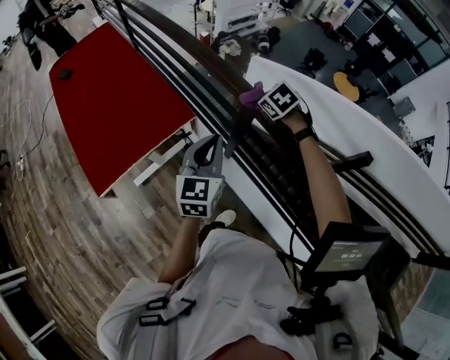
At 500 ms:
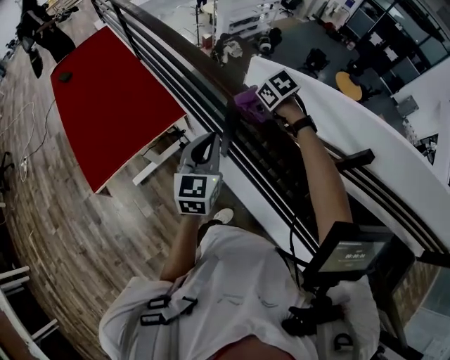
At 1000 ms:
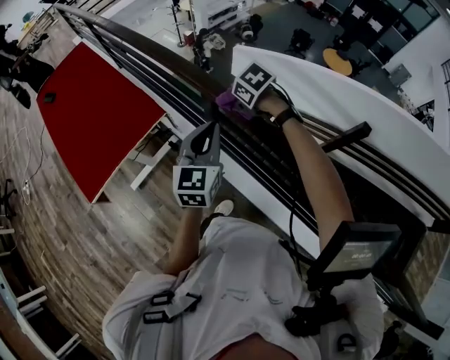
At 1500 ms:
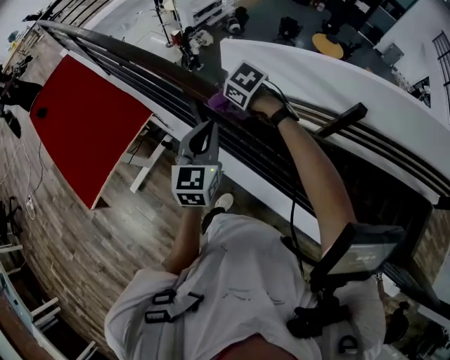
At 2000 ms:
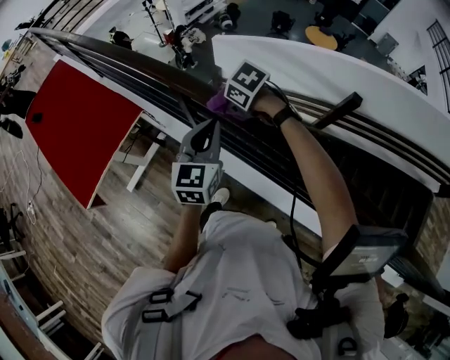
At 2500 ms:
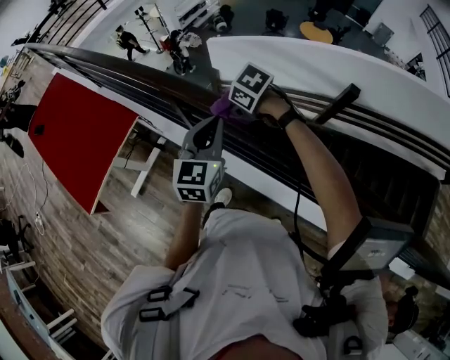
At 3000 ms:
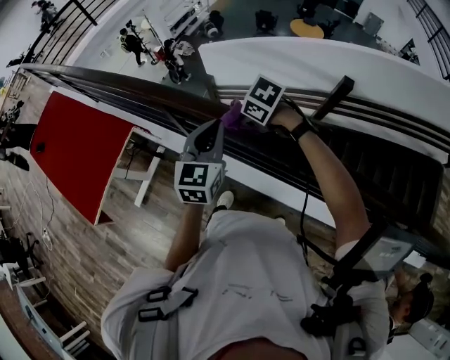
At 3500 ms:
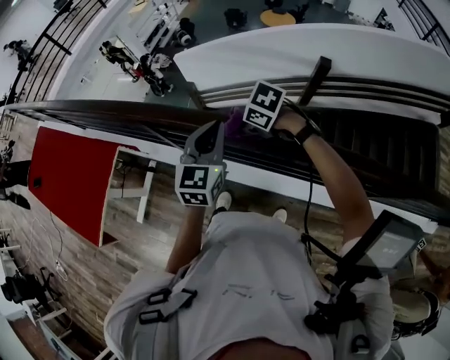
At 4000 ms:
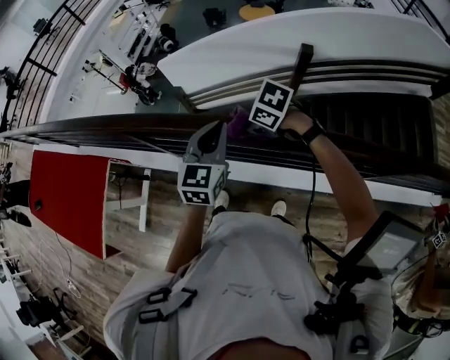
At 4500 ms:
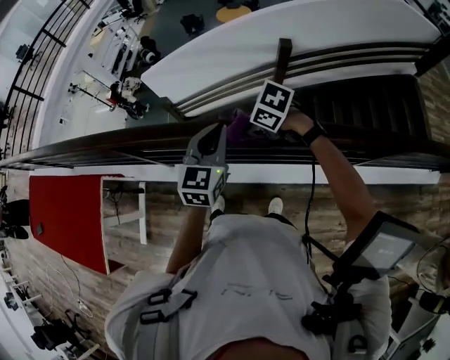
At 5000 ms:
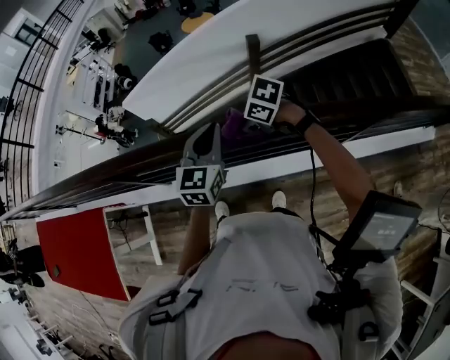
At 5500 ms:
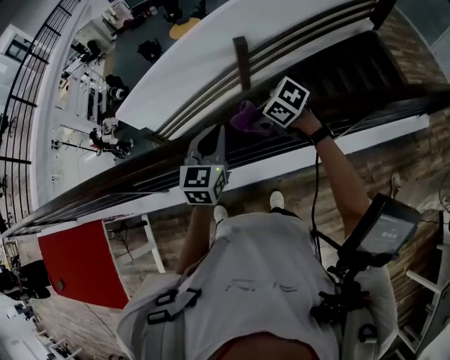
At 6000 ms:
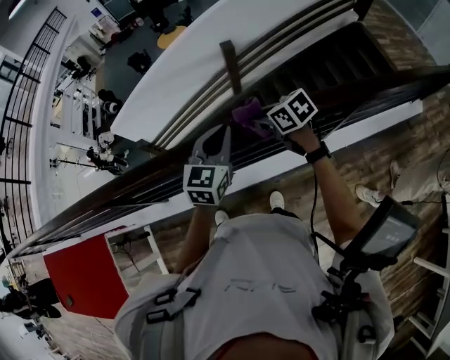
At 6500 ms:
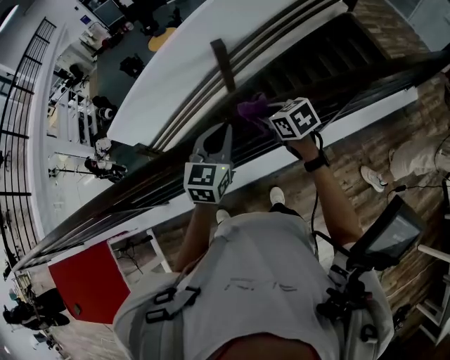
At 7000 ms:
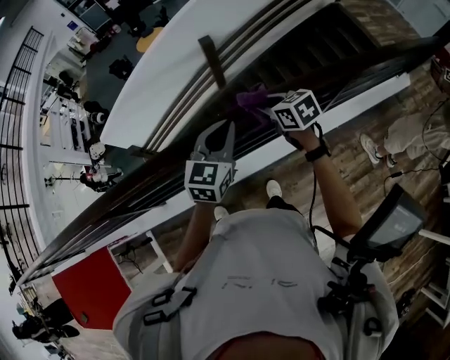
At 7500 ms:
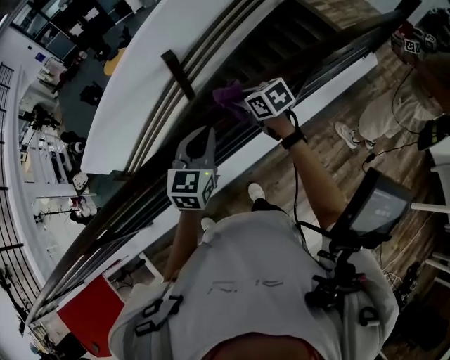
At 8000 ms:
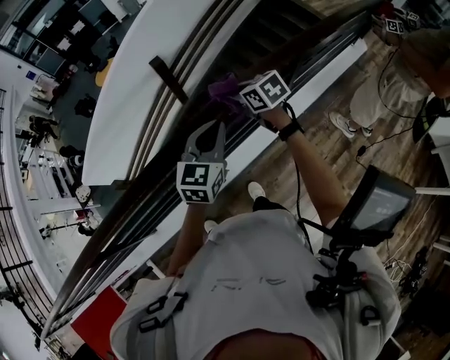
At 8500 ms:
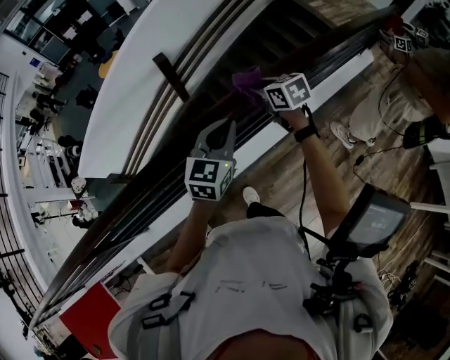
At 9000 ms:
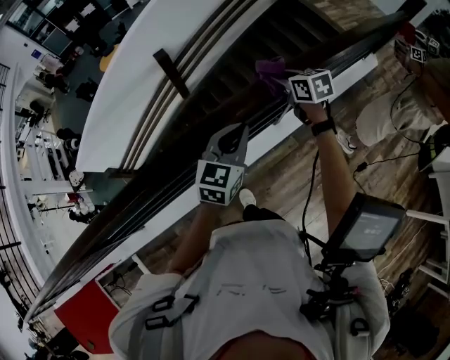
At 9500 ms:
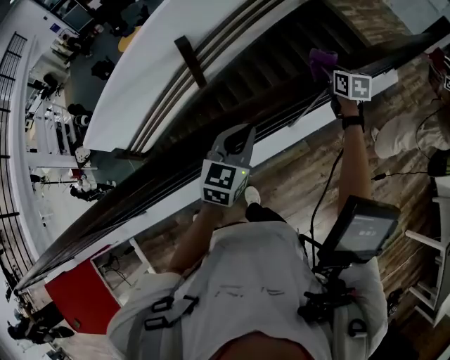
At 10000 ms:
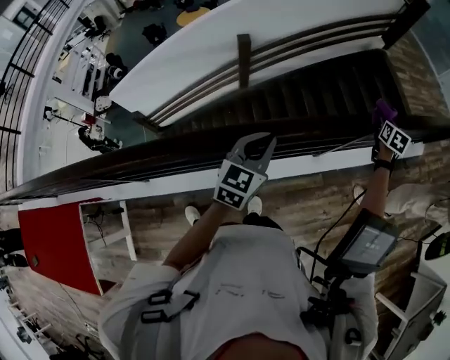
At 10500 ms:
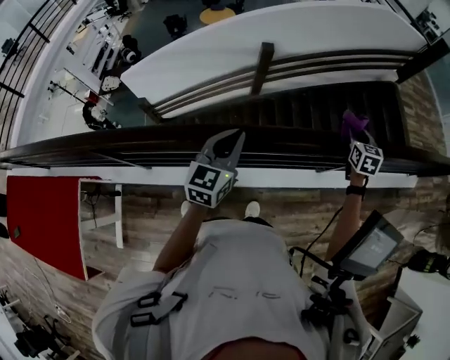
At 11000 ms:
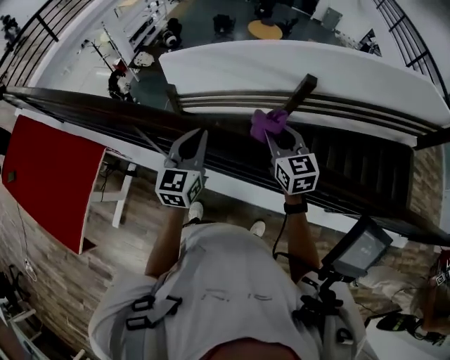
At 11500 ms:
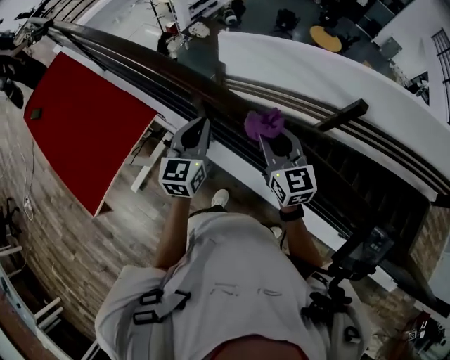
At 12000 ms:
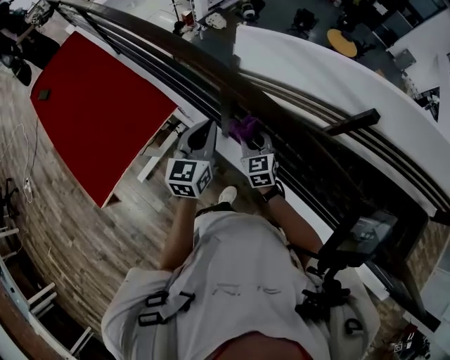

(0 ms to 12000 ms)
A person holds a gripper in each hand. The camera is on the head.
0 ms - 2000 ms: The right gripper moves backward, roughly 20 cm, and turns by about 20 degrees; the left gripper goes about 20 cm to the right and backward.
2000 ms - 4000 ms: The right gripper heads backward and to the right, covering roughly 30 cm, while the left gripper shifts approximately 25 cm to the right and backward, and changes its angle by roughly 30 degrees.
4000 ms - 6000 ms: The left gripper changes place by about 20 cm, and swivels approximately 30 degrees. Meanwhile the right gripper changes place by roughly 25 cm, and swivels approximately 60 degrees.
6000 ms - 8000 ms: The left gripper shifts by roughly 20 cm, and changes its angle by approximately 20 degrees, while the right gripper changes place by some 20 cm, and changes its angle by approximately 30 degrees.
8000 ms - 10000 ms: The left gripper goes to the right and returns, approximately 10 cm each way. Meanwhile the right gripper heads to the right and forward, covering approximately 35 cm, and rotates some 40 degrees.
10000 ms - 12000 ms: The pair of grippers is taken about 1 m. The left gripper swivels some 70 degrees; the right gripper rotates about 90 degrees.

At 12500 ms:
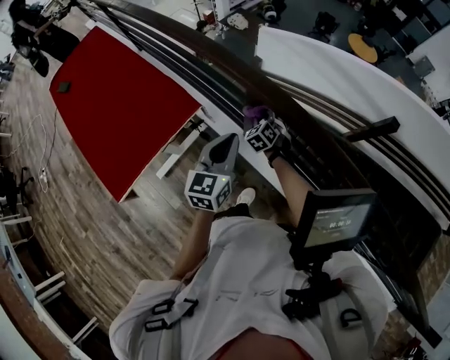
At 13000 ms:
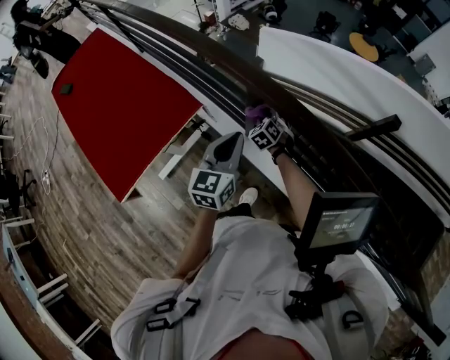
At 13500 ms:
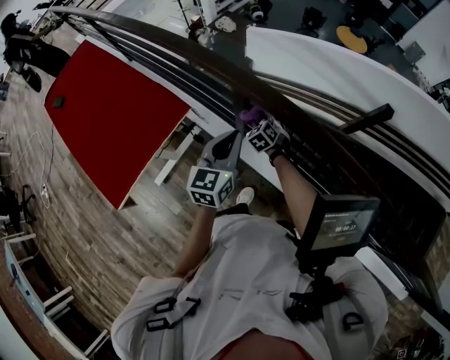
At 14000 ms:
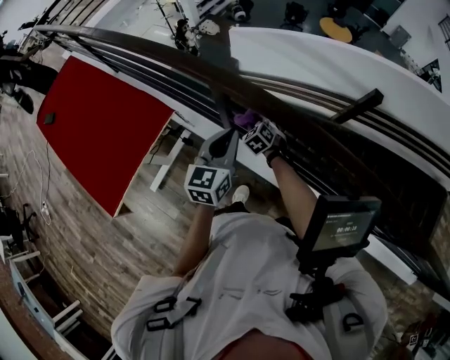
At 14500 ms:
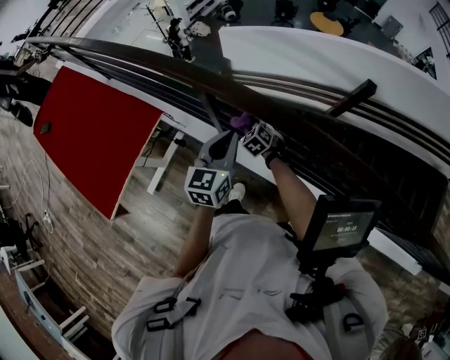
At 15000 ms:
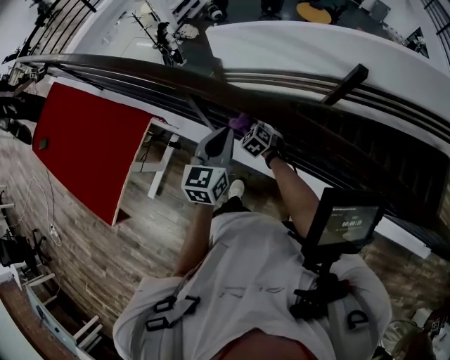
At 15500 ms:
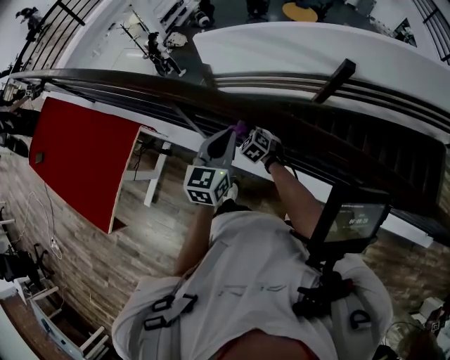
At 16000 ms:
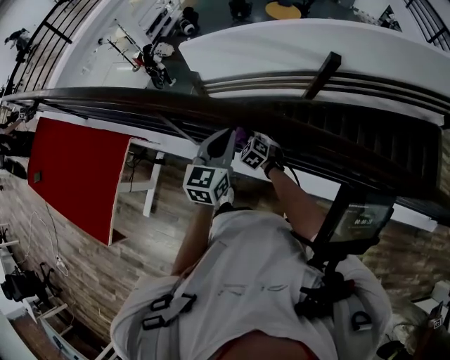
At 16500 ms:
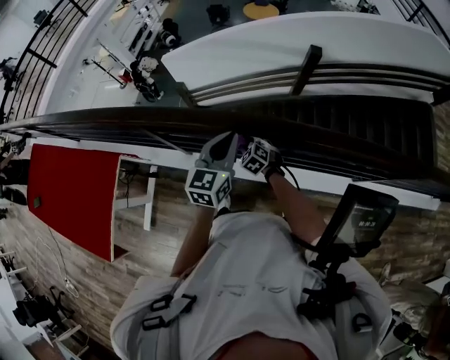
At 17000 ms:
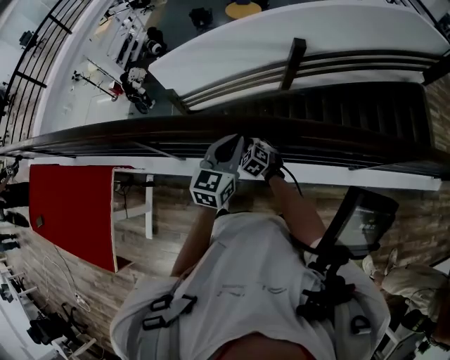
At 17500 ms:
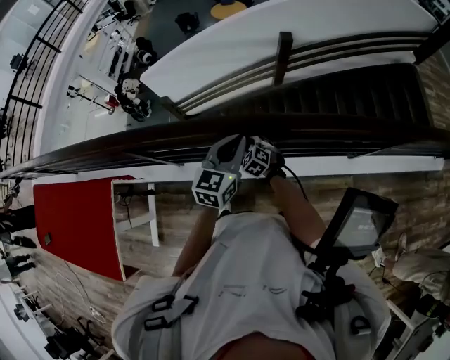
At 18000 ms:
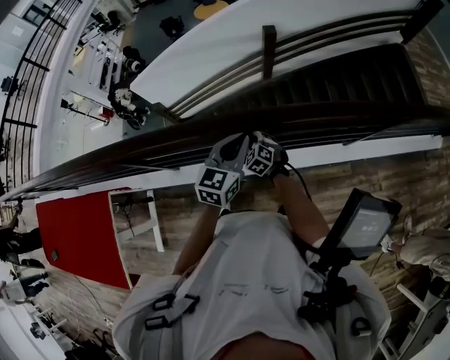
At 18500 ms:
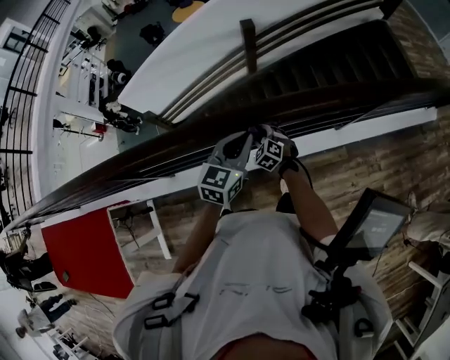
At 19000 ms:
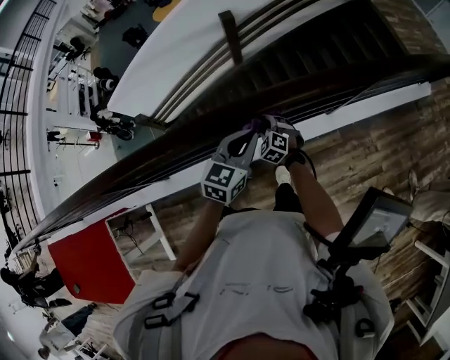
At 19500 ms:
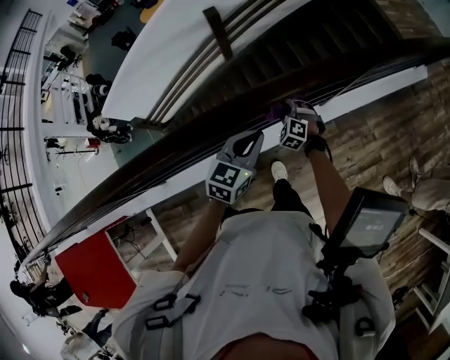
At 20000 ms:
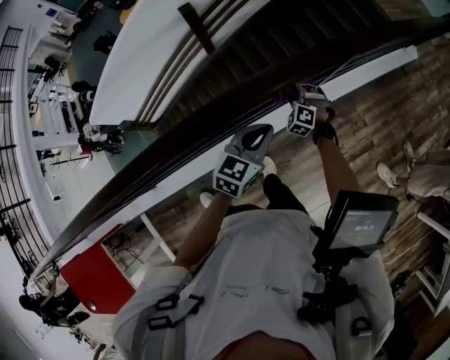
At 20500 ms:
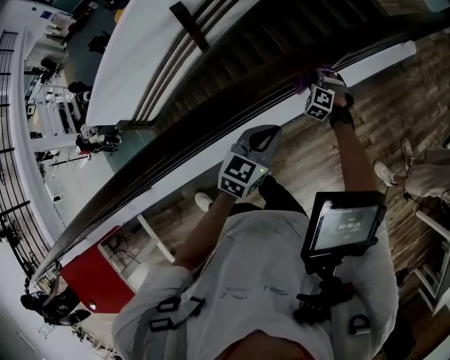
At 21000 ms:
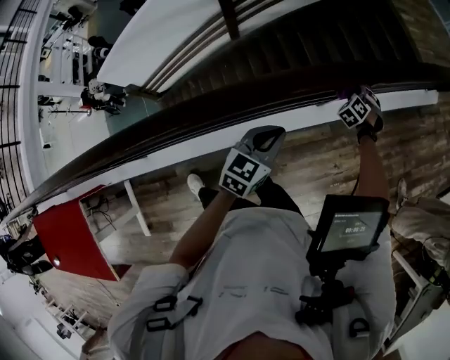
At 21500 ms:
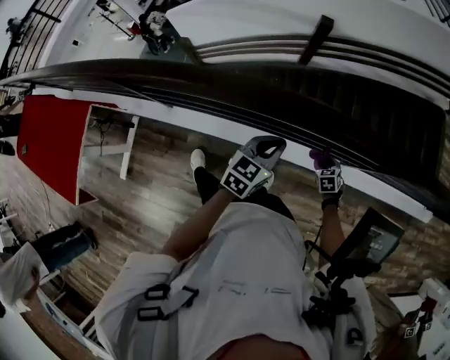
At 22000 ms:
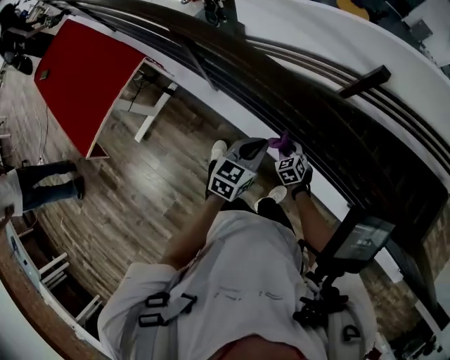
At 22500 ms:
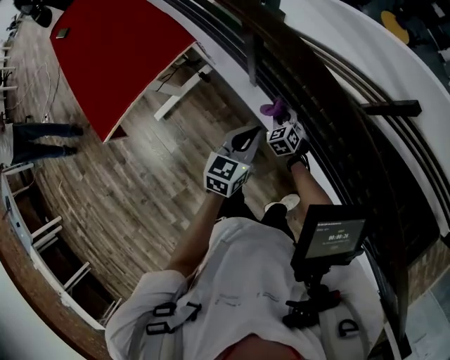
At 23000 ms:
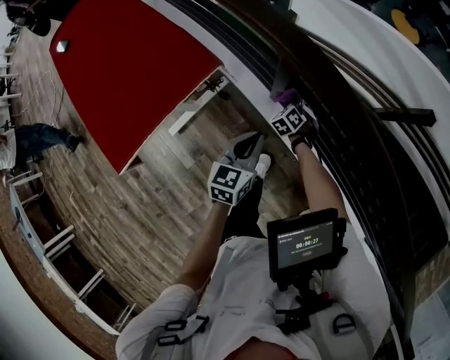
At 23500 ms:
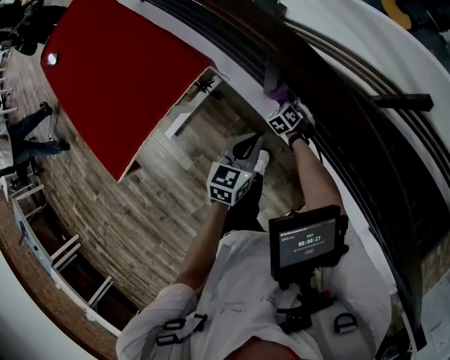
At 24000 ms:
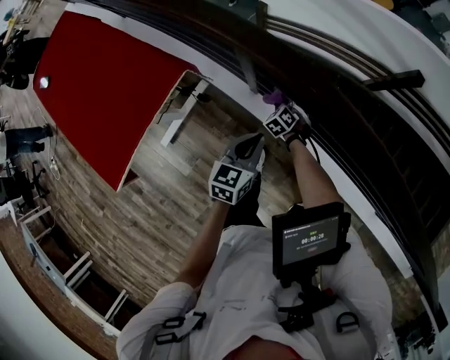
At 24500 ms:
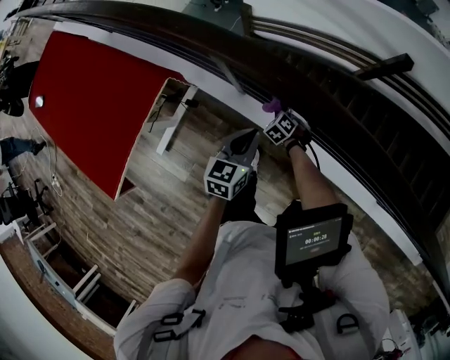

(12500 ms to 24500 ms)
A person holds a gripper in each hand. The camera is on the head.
12500 ms - 14500 ms: The left gripper goes about 15 cm to the right. Meanwhile the right gripper moves to the right and backward, approximately 15 cm.
14500 ms - 16500 ms: The left gripper is displaced to the right by about 20 cm, and rotates about 20 degrees. Meanwhile the right gripper is displaced to the right and backward by about 20 cm.
16500 ms - 18500 ms: The right gripper shifts by some 25 cm, and swivels roughly 20 degrees; the left gripper moves roughly 25 cm, and swivels about 30 degrees.
18500 ms - 20500 ms: The right gripper ends up about 50 cm from where it was, and swivels approximately 30 degrees. Meanwhile the left gripper changes place by approximately 35 cm, and turns by some 30 degrees.
20500 ms - 22500 ms: Both grippers are carried about 80 cm. The right gripper turns by about 60 degrees; the left gripper changes its angle by about 90 degrees.
22500 ms - 24500 ms: The left gripper moves forward, approximately 5 cm, and moves about 10 cm to the left and comes back; the right gripper travels downward and forward by roughly 10 cm, and goes to the left and returns, some 10 cm each way.

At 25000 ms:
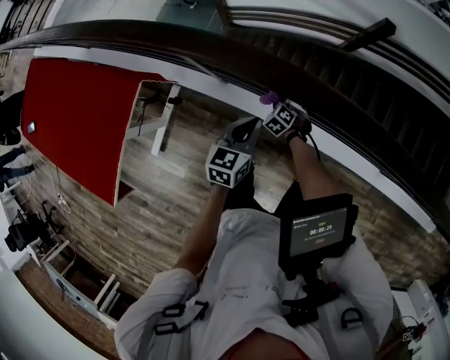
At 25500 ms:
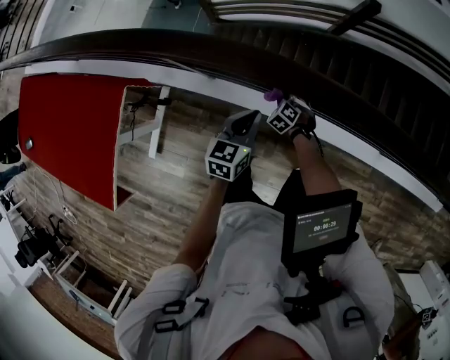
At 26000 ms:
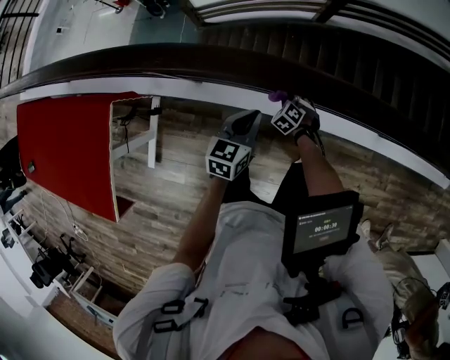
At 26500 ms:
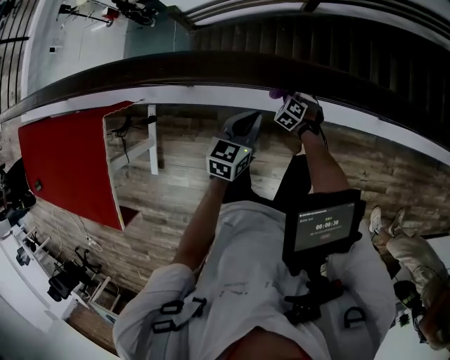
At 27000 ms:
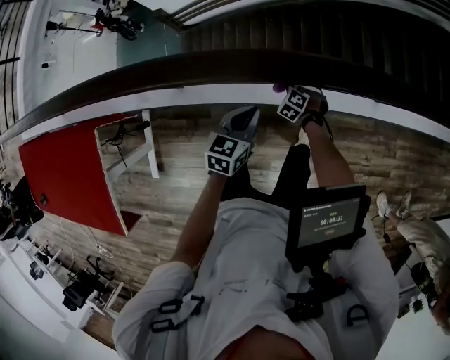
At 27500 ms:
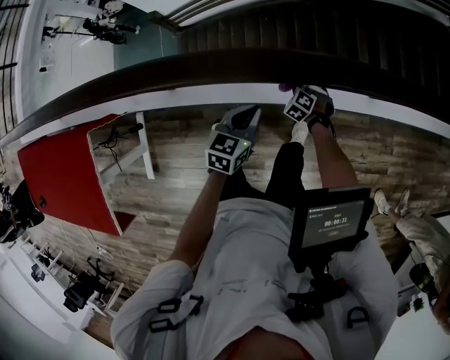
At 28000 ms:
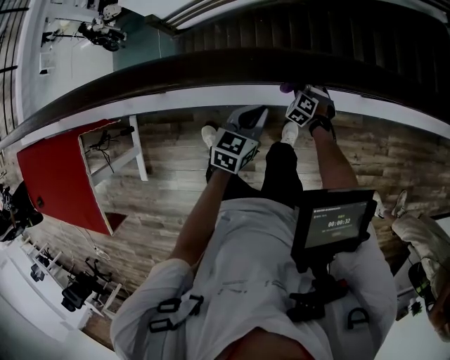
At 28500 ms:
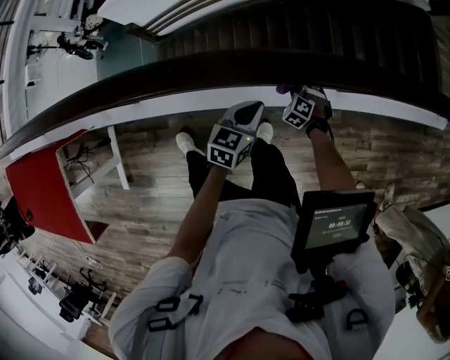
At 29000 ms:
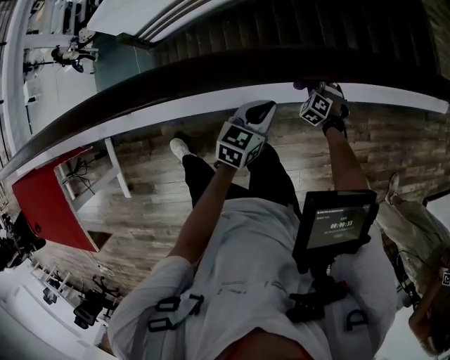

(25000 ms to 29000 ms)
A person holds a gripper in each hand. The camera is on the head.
25000 ms - 27000 ms: The right gripper shifts by approximately 30 cm. Meanwhile the left gripper changes place by some 20 cm, and swivels about 30 degrees.
27000 ms - 29000 ms: Both grippers travel together to the right and forward, approximately 40 cm.
